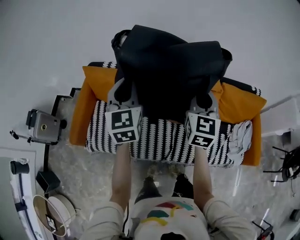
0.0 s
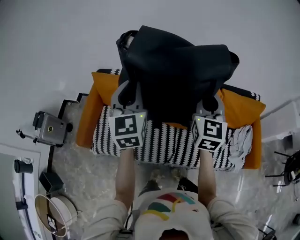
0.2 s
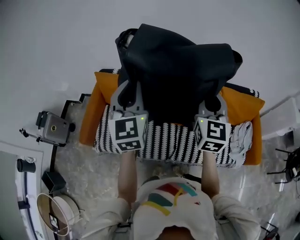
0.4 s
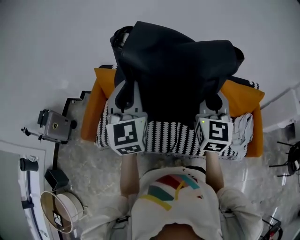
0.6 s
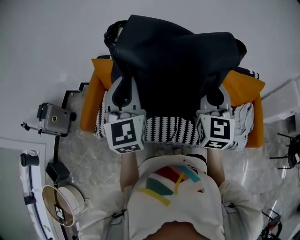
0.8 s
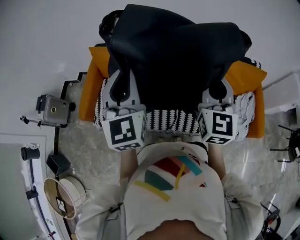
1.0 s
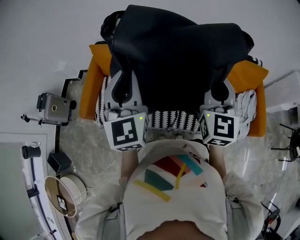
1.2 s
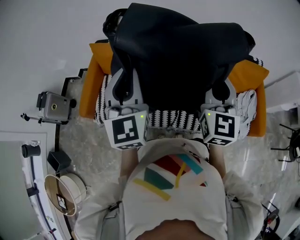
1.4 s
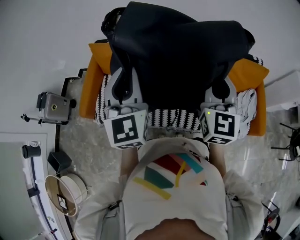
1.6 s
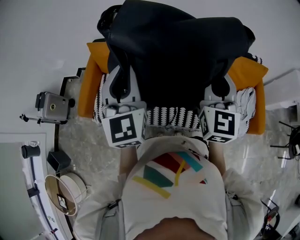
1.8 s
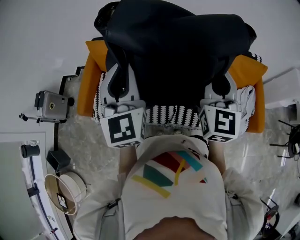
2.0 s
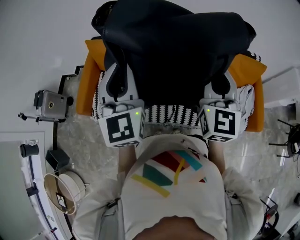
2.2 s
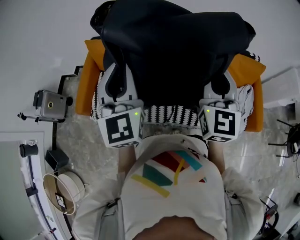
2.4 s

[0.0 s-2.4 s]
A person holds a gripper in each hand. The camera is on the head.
0.0 to 1.2 s: The two grippers go roughly 20 cm backward and upward.
1.2 to 2.4 s: The grippers stay close to where they were, moving slightly.

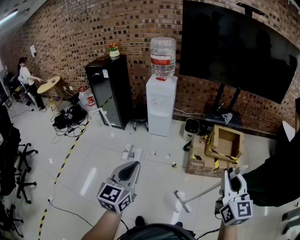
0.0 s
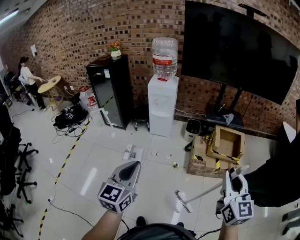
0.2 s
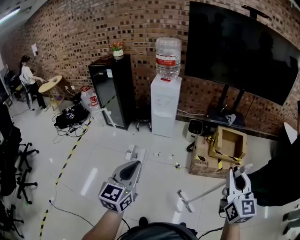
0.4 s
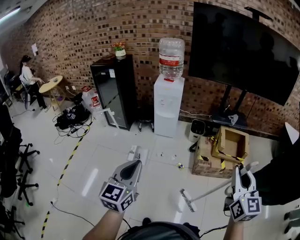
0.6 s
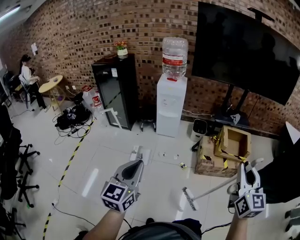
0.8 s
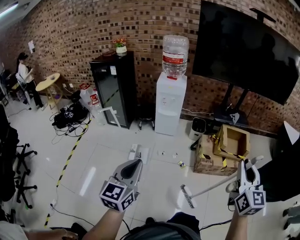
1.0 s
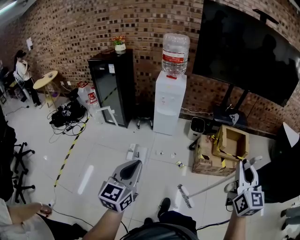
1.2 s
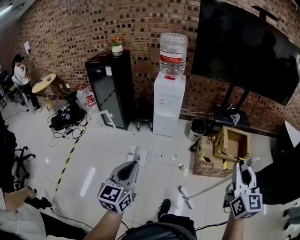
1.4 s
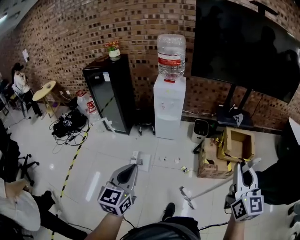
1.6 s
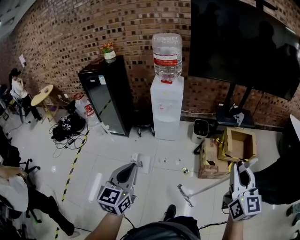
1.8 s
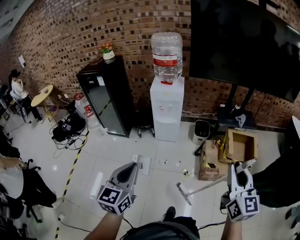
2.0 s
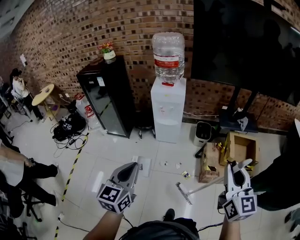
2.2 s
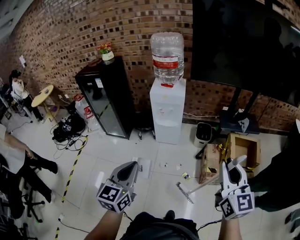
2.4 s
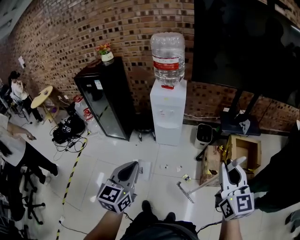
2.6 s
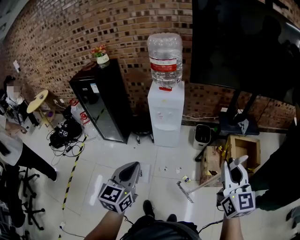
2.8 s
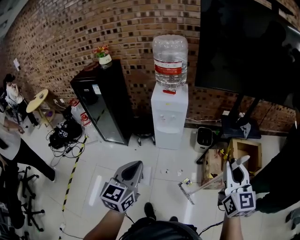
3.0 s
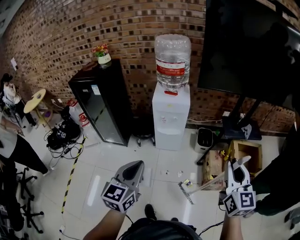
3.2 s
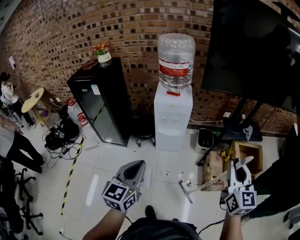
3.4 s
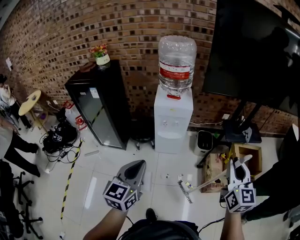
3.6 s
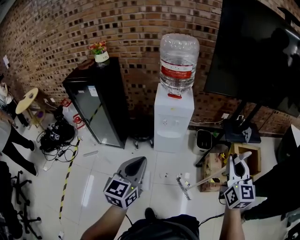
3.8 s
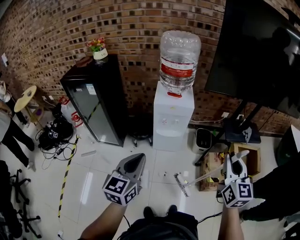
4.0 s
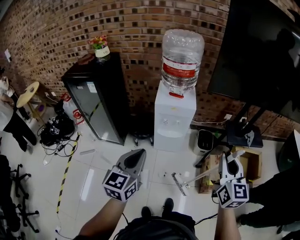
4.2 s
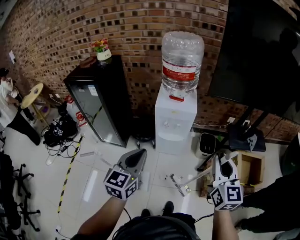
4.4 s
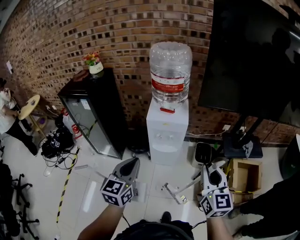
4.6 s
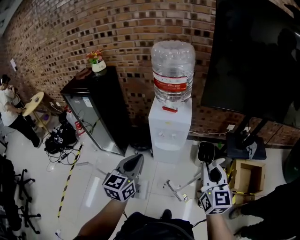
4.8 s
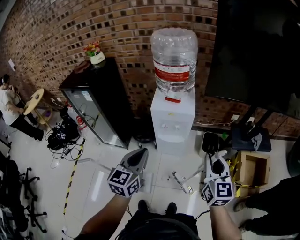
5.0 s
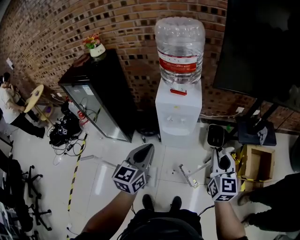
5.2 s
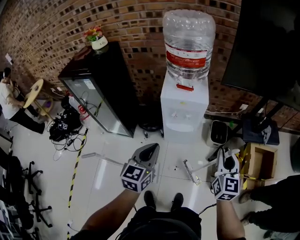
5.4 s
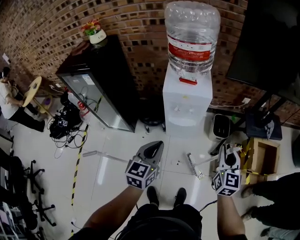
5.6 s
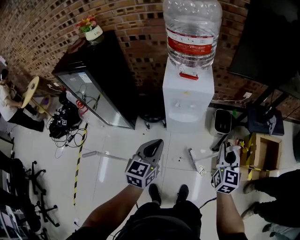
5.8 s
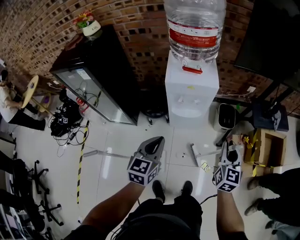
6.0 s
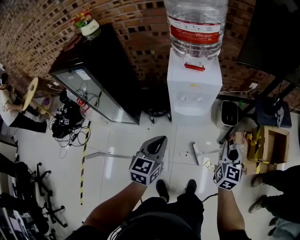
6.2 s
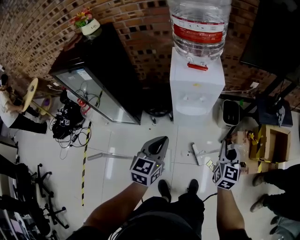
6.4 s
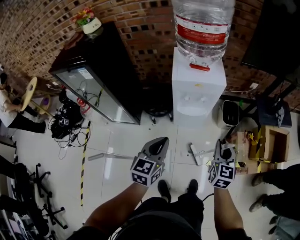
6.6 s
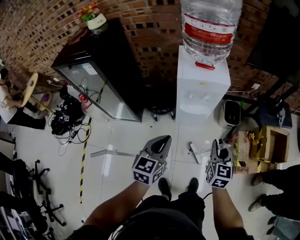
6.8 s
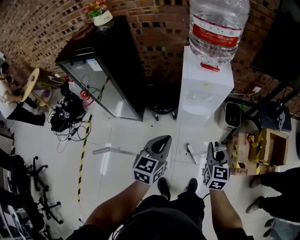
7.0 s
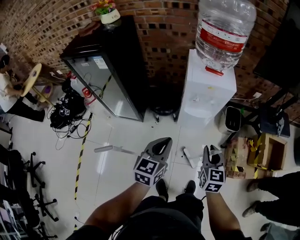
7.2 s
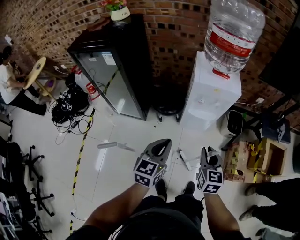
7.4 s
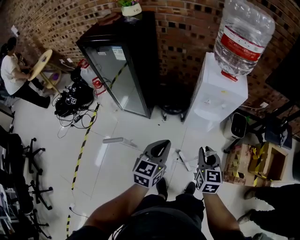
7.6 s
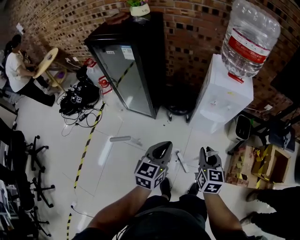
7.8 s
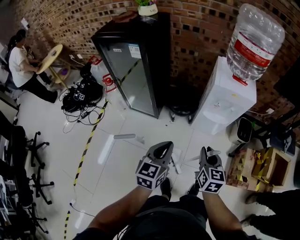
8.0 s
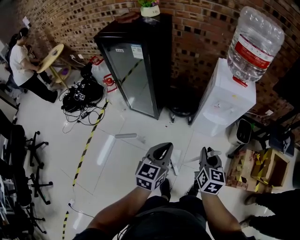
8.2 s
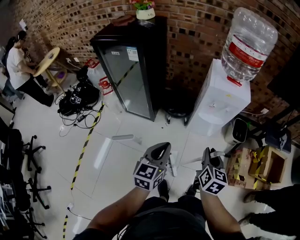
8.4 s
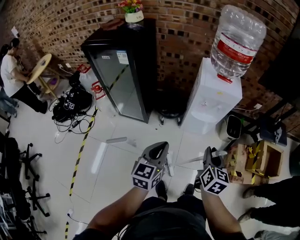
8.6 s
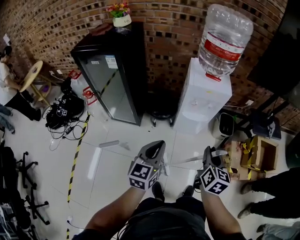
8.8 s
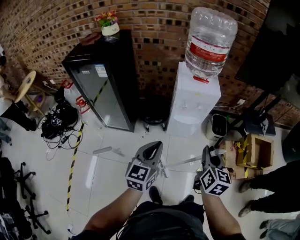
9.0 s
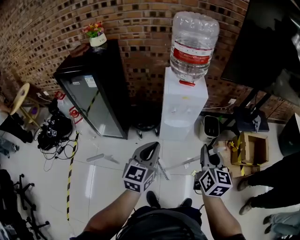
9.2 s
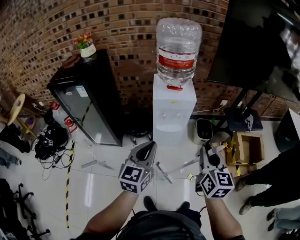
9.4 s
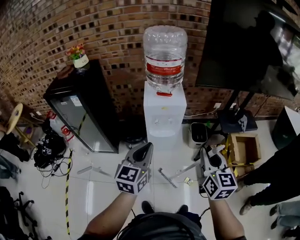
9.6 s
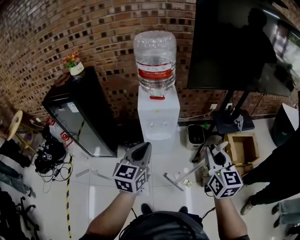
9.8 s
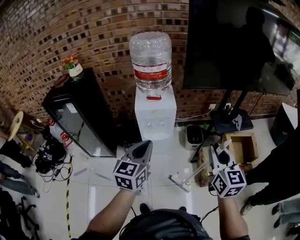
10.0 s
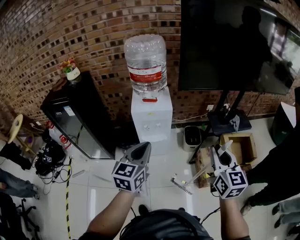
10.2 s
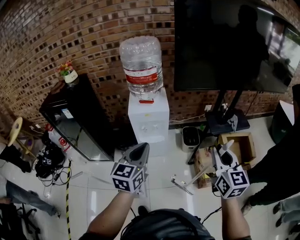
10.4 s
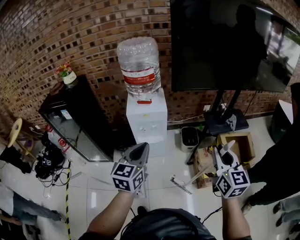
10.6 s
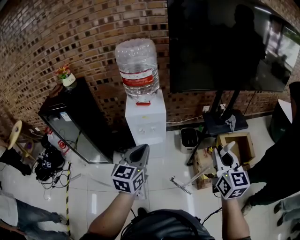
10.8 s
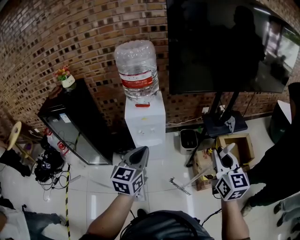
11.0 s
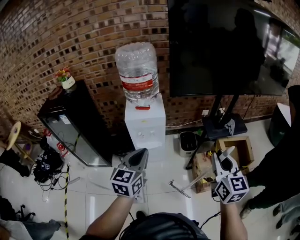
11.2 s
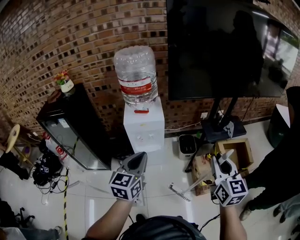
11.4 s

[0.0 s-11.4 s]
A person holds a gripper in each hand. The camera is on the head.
0.0 to 1.4 s: The right gripper is displaced to the left and forward by some 20 cm. Meanwhile the left gripper heads to the left, covering roughly 20 cm.
1.4 to 2.8 s: Both grippers move forward, some 30 cm.
2.8 to 4.2 s: Both grippers move forward and to the left, some 25 cm.
4.2 to 5.6 s: The right gripper heads downward and forward, covering roughly 25 cm. The left gripper travels forward and downward by approximately 20 cm.
5.6 to 7.2 s: The right gripper heads to the left and downward, covering about 25 cm. Meanwhile the left gripper travels to the left and downward by roughly 15 cm.
7.2 to 8.6 s: The left gripper heads backward and to the left, covering about 15 cm; the right gripper heads to the left, backward and upward, covering roughly 10 cm.
8.6 to 10.0 s: Both grippers move to the right and upward, about 40 cm. The right gripper turns by roughly 20 degrees.
10.0 to 11.4 s: The right gripper goes approximately 10 cm to the right. The left gripper travels to the right by approximately 5 cm.

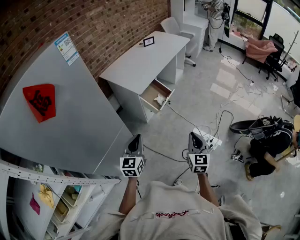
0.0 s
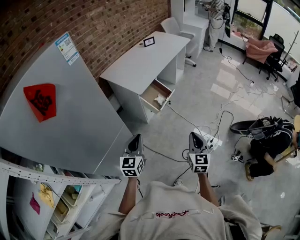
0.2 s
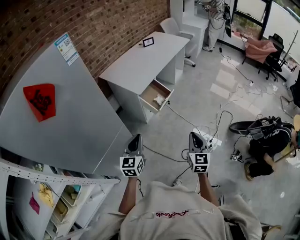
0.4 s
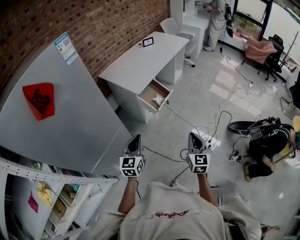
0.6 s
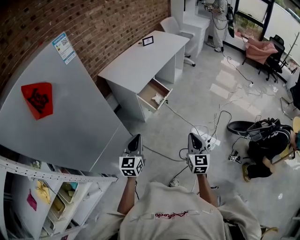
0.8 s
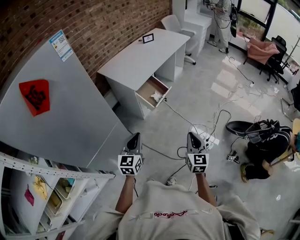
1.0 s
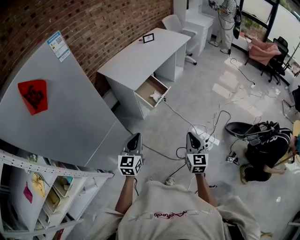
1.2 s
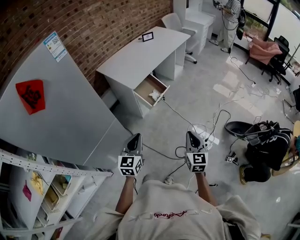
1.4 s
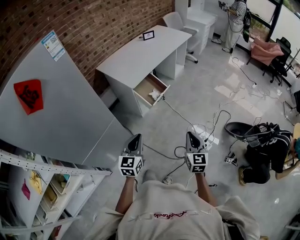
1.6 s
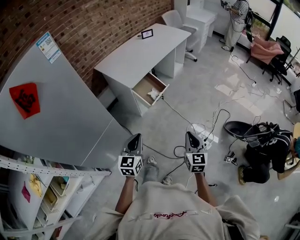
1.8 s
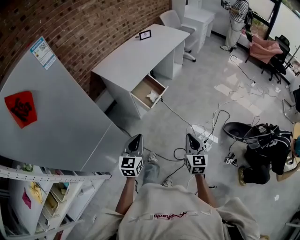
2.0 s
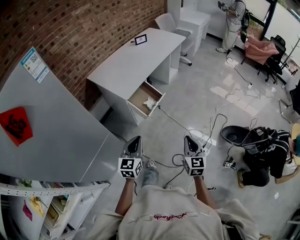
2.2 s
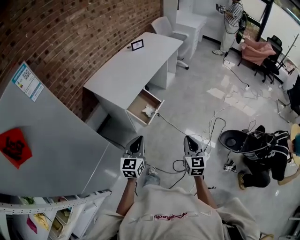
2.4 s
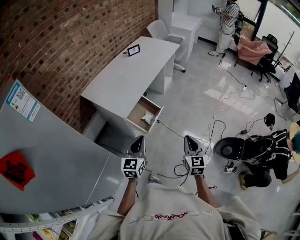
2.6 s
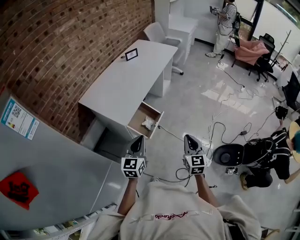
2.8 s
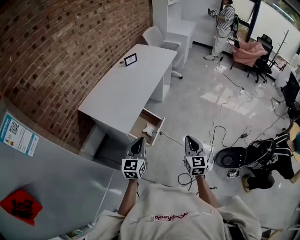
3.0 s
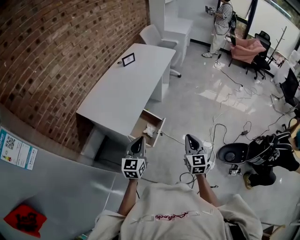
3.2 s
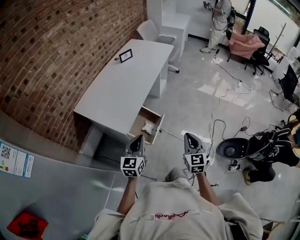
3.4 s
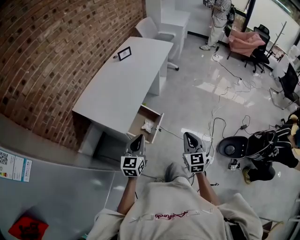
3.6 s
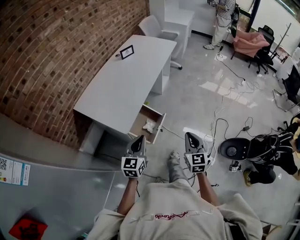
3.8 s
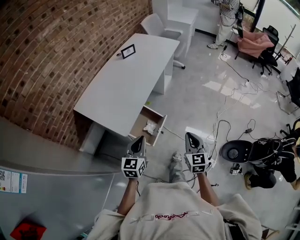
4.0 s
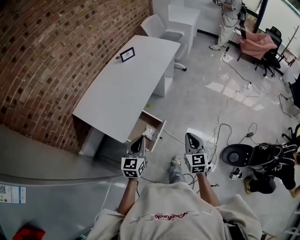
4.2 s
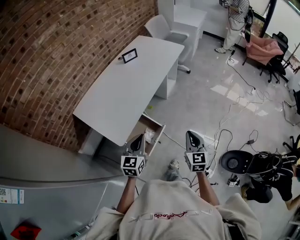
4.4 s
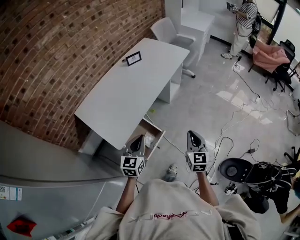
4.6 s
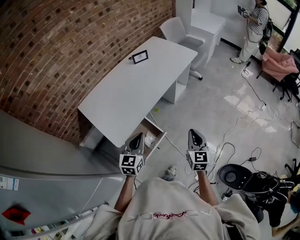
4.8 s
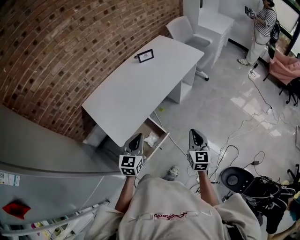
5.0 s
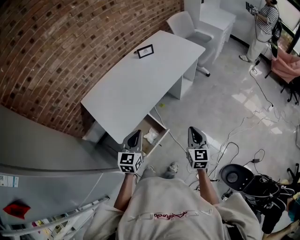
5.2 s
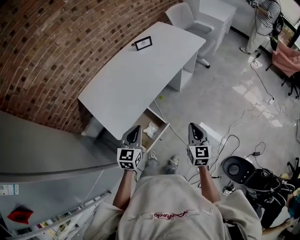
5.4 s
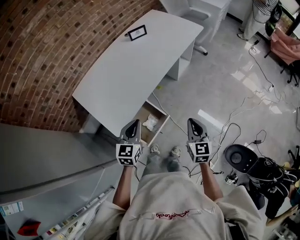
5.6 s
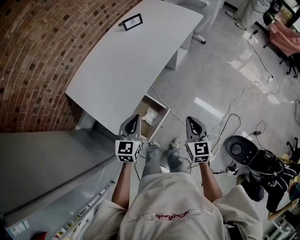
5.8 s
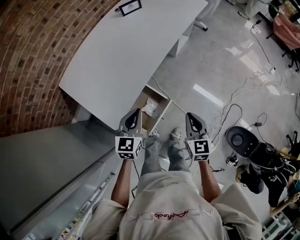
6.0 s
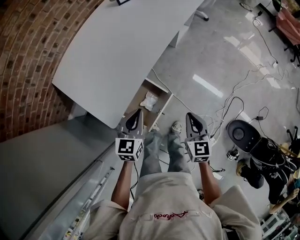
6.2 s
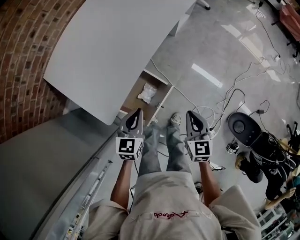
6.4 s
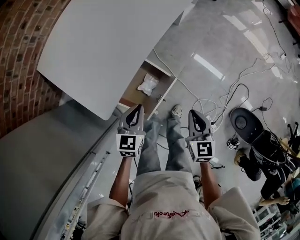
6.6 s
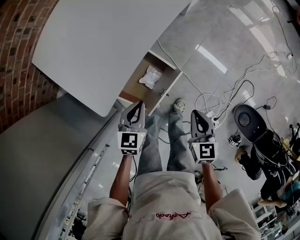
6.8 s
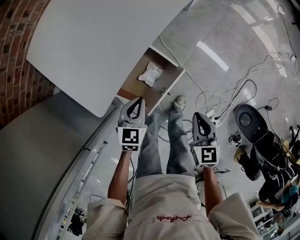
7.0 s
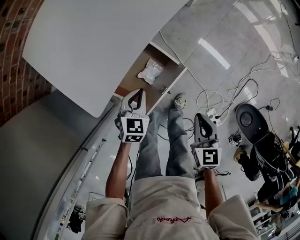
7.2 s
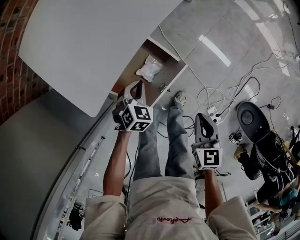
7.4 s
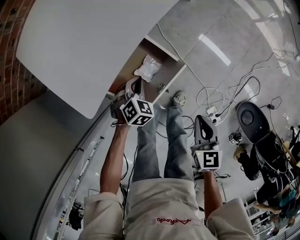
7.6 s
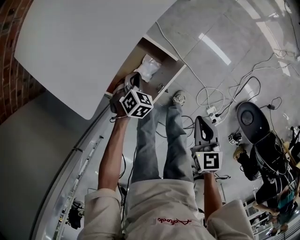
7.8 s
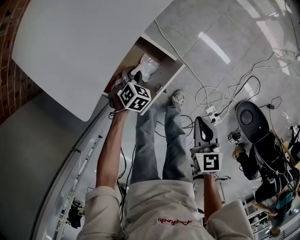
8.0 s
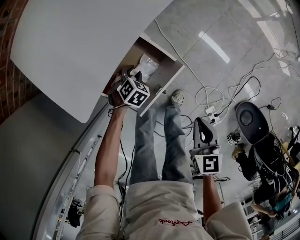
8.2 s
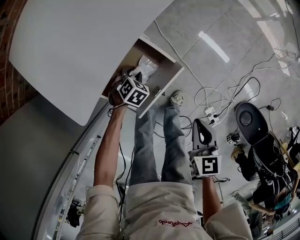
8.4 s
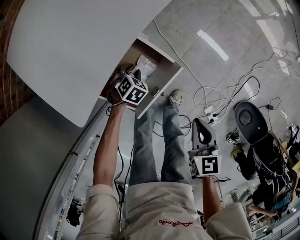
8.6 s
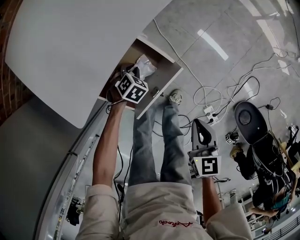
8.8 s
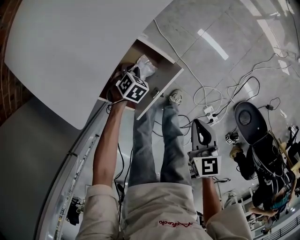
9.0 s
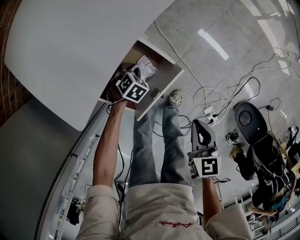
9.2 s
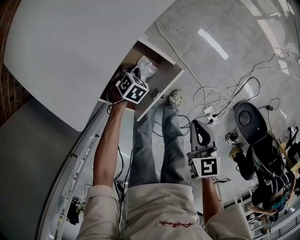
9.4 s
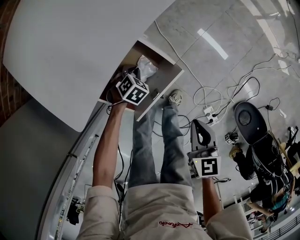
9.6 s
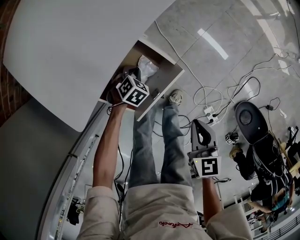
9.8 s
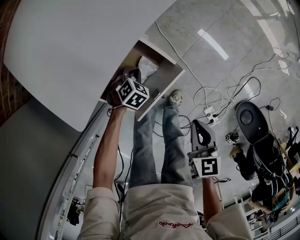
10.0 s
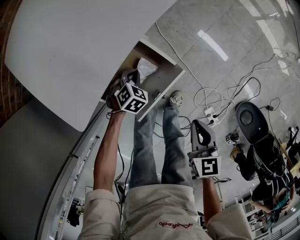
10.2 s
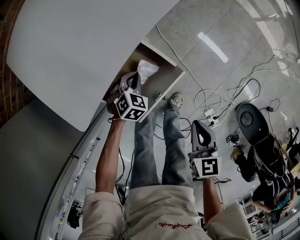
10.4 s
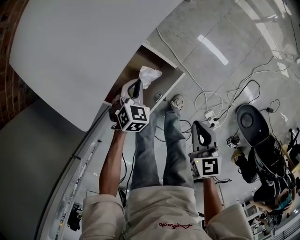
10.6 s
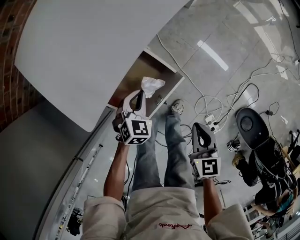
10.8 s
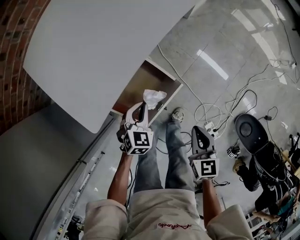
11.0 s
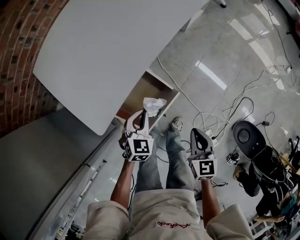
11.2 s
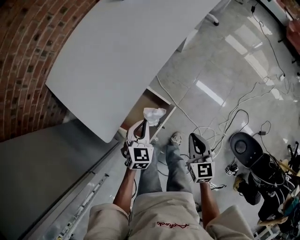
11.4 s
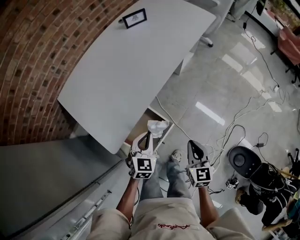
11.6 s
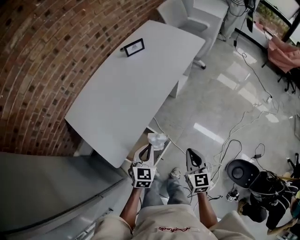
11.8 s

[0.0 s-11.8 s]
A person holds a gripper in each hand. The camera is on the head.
0.0 to 1.4 s: The two grippers go approximately 10 cm to the right.
1.4 to 3.0 s: Both grippers travel together forward, roughly 30 cm.
3.0 to 4.4 s: The grippers both shift forward by roughly 15 cm.
4.4 to 6.0 s: The grippers both shift forward and downward by roughly 15 cm.
6.0 to 7.4 s: The left gripper travels downward by some 30 cm, and angles its fingers downward, by about 30 degrees, while the right gripper goes approximately 20 cm downward.
7.4 to 8.8 s: The left gripper shifts roughly 15 cm downward.
8.8 to 10.4 s: The left gripper goes approximately 5 cm upward.
10.4 to 11.8 s: The right gripper shifts approximately 20 cm upward, and swivels roughly 20 degrees. Meanwhile the left gripper is displaced upward by some 35 cm, and angles its fingers upward, by roughly 30 degrees.
